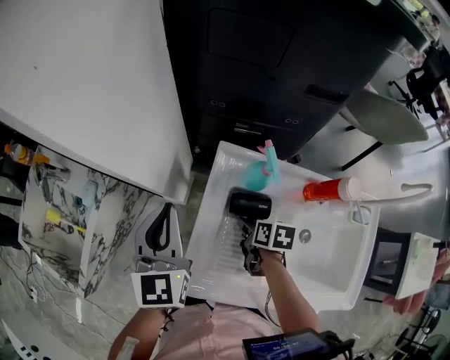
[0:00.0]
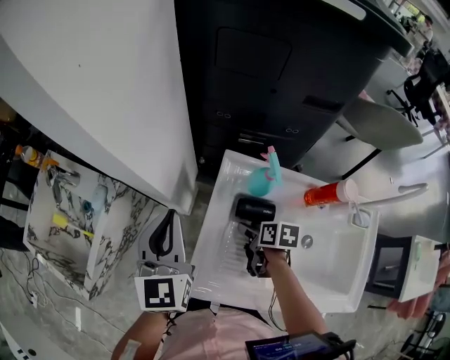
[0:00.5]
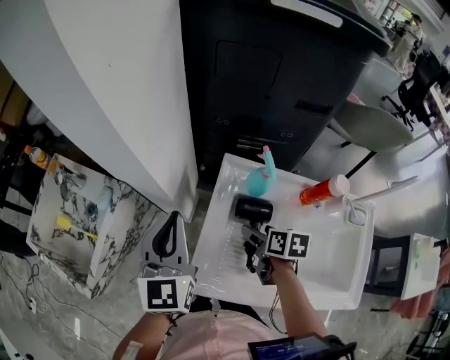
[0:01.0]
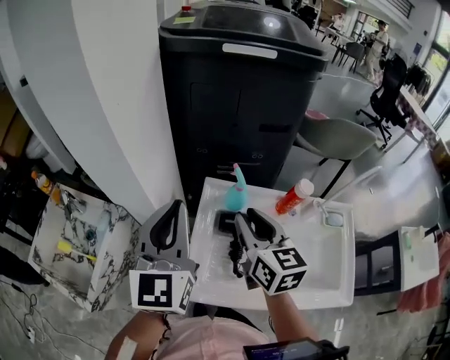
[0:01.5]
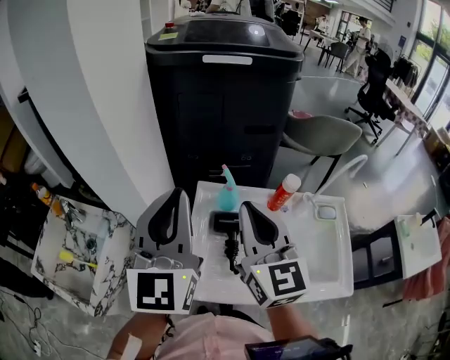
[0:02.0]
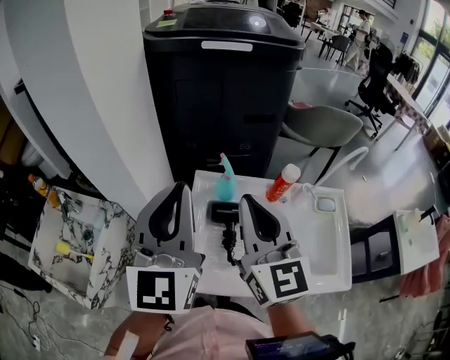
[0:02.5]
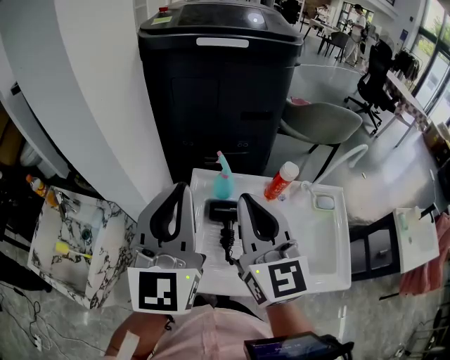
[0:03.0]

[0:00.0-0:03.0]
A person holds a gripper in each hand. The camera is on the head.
0:00.0 to 0:01.5: The right gripper travels upward by approximately 30 cm, tips its fingers upward by approximately 40 degrees, and opens and closes again, while the left gripper travels upward by about 20 cm.
0:01.5 to 0:03.0: The right gripper moves upward and backward, approximately 10 cm, and changes its angle by some 20 degrees, while the left gripper is displaced upward by some 5 cm.

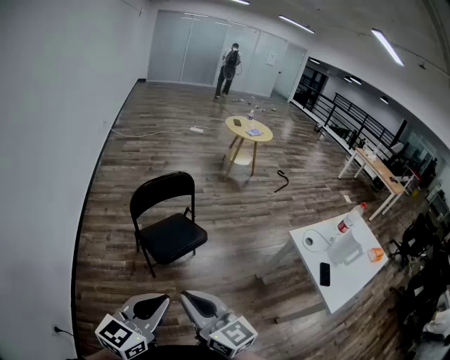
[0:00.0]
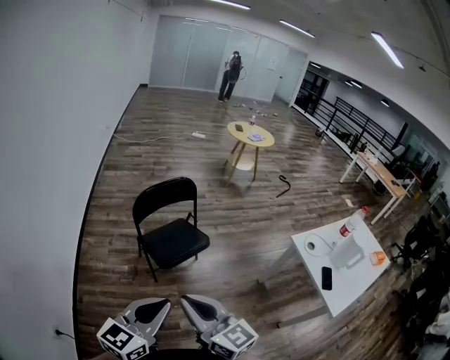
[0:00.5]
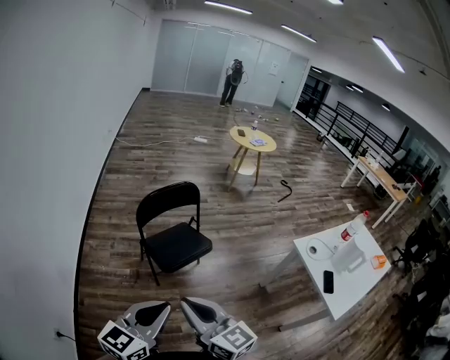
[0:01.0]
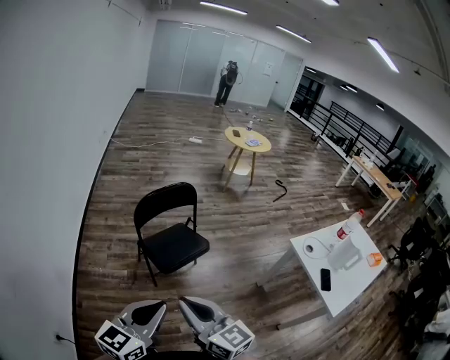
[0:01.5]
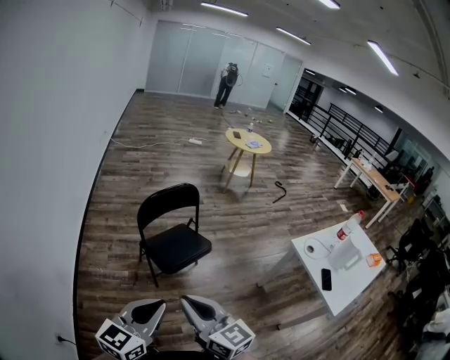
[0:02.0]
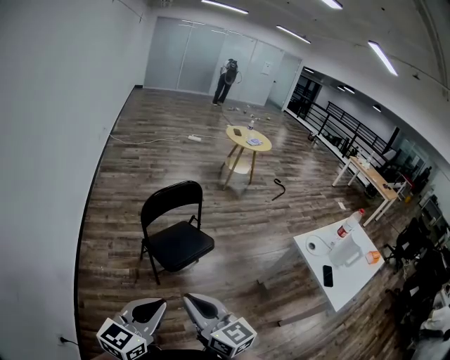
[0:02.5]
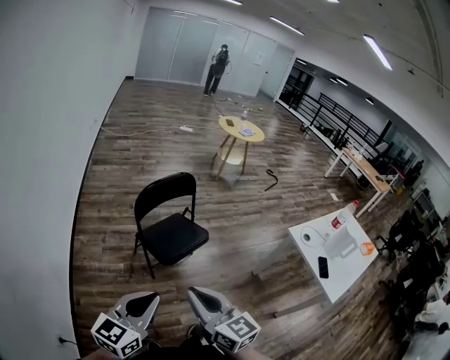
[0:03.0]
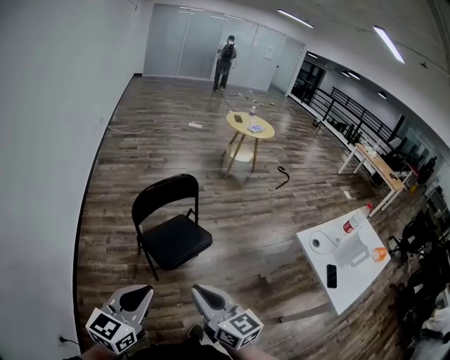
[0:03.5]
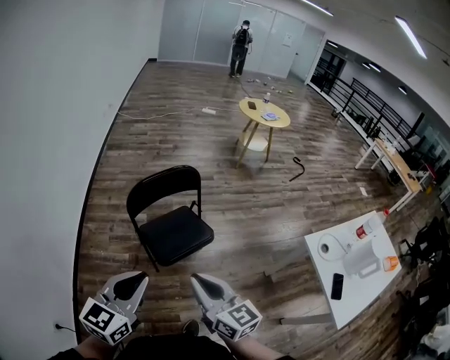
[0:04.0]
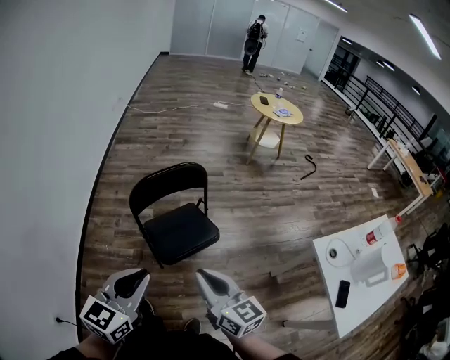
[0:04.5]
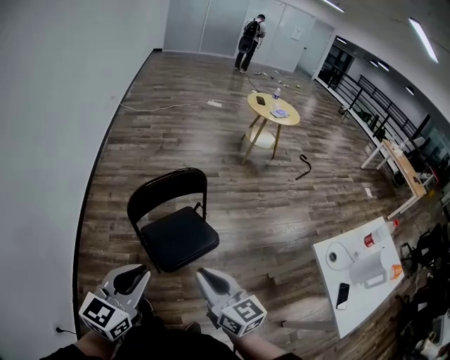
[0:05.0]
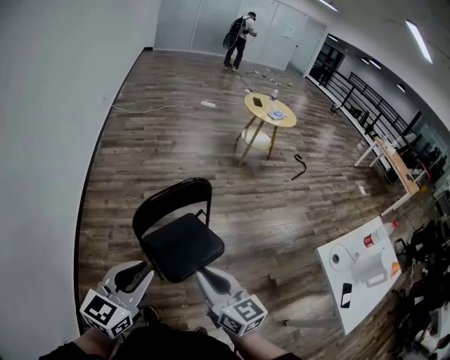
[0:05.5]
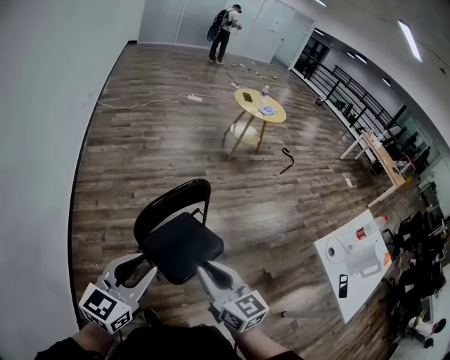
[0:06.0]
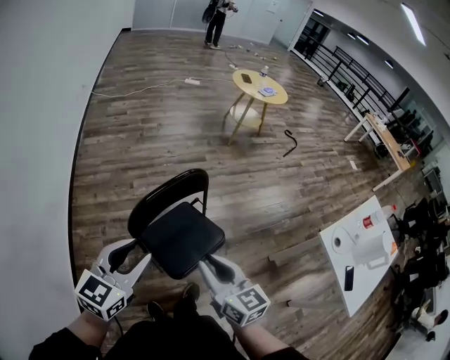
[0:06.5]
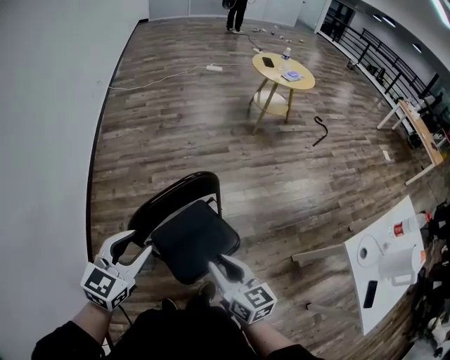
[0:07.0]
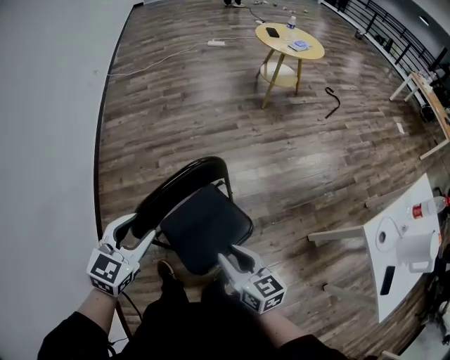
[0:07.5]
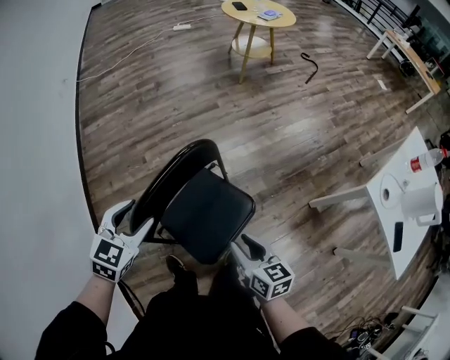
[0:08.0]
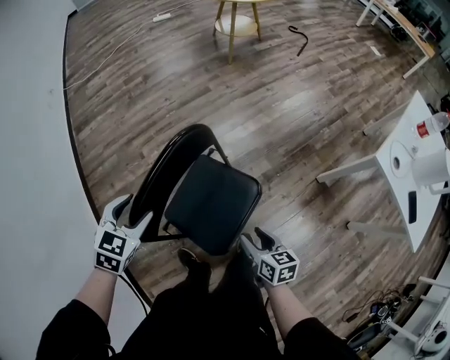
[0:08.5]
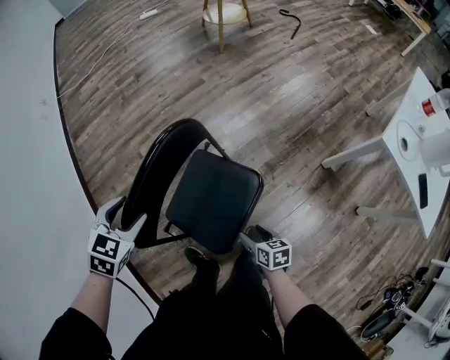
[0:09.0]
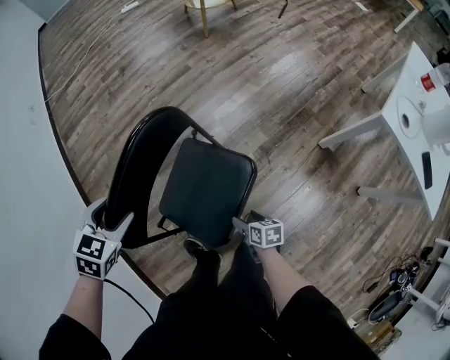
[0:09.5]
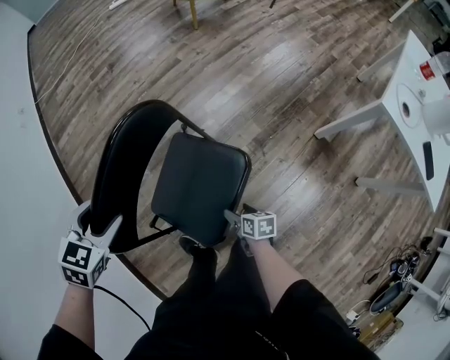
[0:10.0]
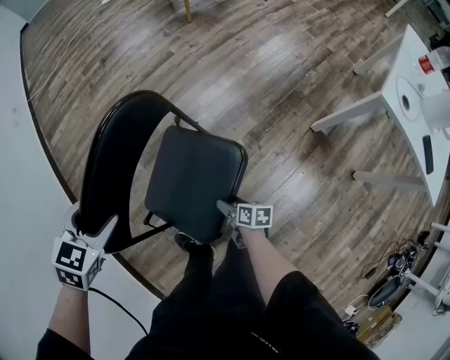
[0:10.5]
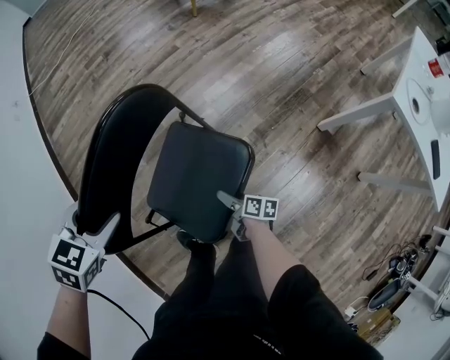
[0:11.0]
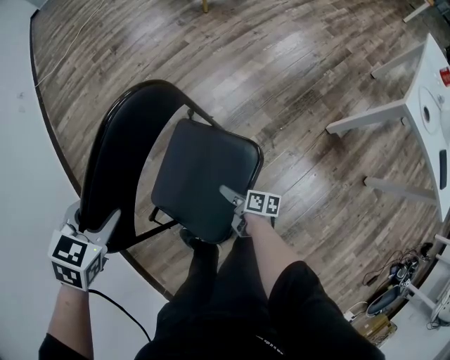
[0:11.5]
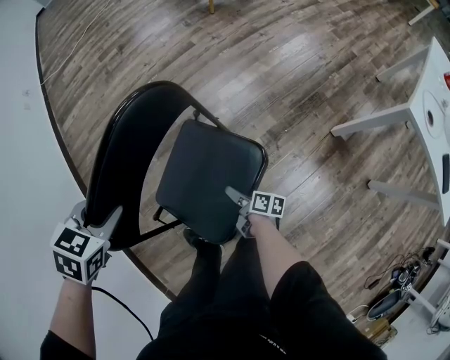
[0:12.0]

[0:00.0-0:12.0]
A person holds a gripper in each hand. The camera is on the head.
0:00.0 to 0:02.0: The left gripper is displaced to the left by some 5 cm.
0:02.0 to 0:04.0: The right gripper heads forward and to the right, covering approximately 15 cm. Meanwhile the left gripper moves forward, about 15 cm.
0:04.0 to 0:06.0: The grippers both shift forward and to the left by about 20 cm. The left gripper opens.
0:06.0 to 0:08.0: The left gripper is displaced forward and downward by some 30 cm, changes its angle by approximately 40 degrees, and opens up, while the right gripper heads downward, covering some 20 cm, and rotates about 30 degrees.
0:08.0 to 0:10.0: The right gripper travels downward by about 30 cm, swivels some 40 degrees, and opens up. Meanwhile the left gripper shifts roughly 10 cm downward, and rotates some 20 degrees.
0:10.0 to 0:12.0: The right gripper shifts about 5 cm forward, and swivels approximately 30 degrees; the left gripper closes its fingers.

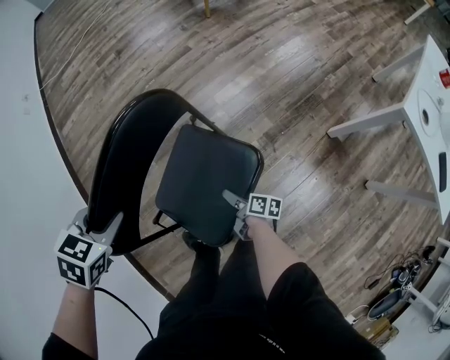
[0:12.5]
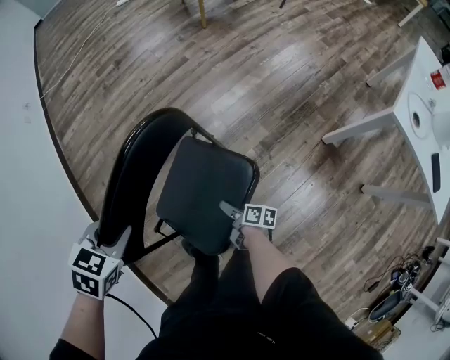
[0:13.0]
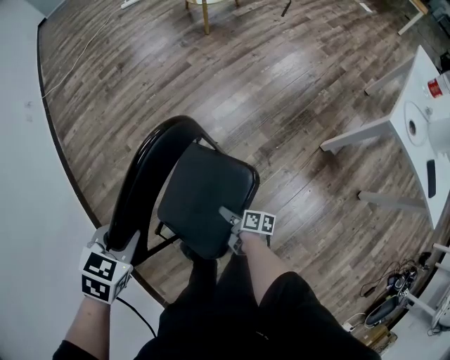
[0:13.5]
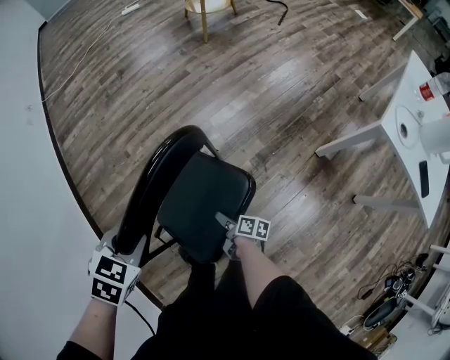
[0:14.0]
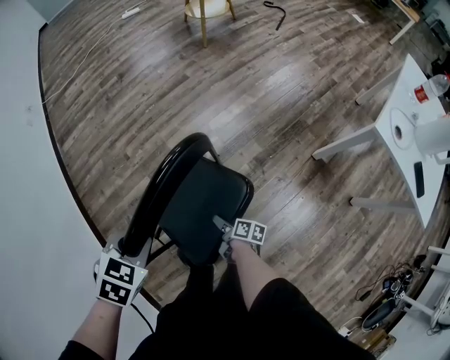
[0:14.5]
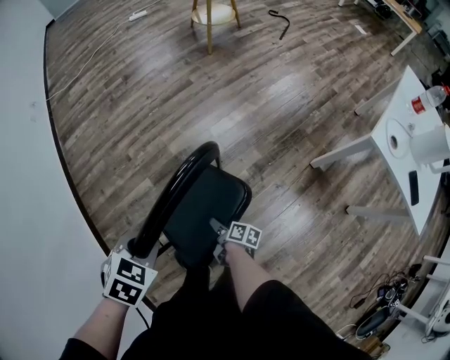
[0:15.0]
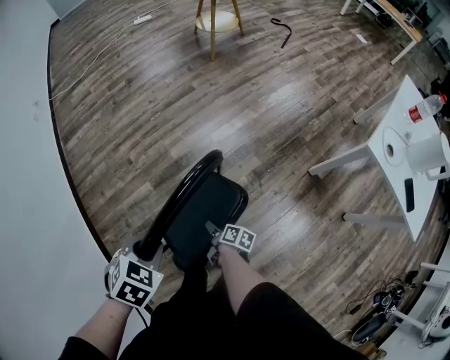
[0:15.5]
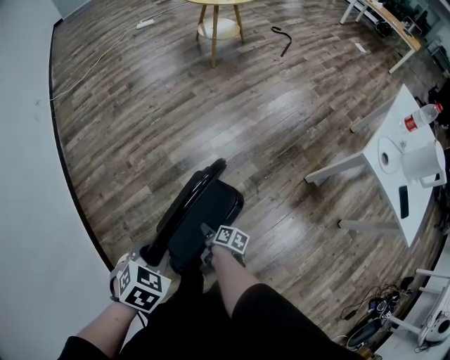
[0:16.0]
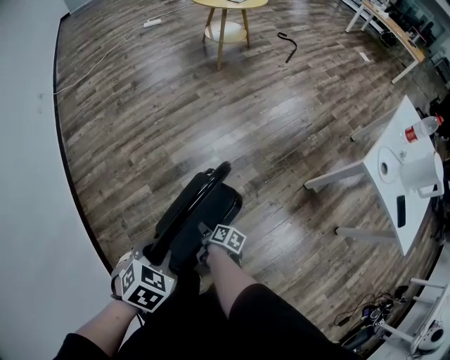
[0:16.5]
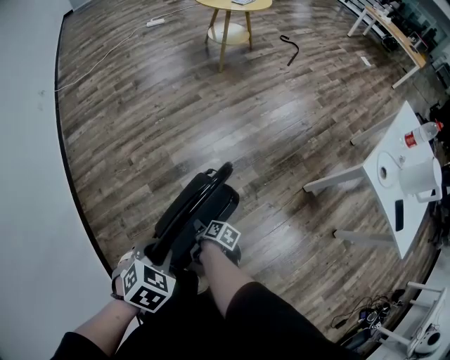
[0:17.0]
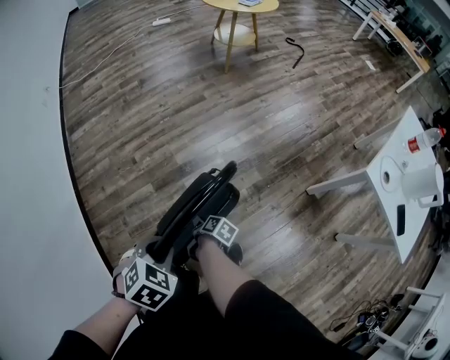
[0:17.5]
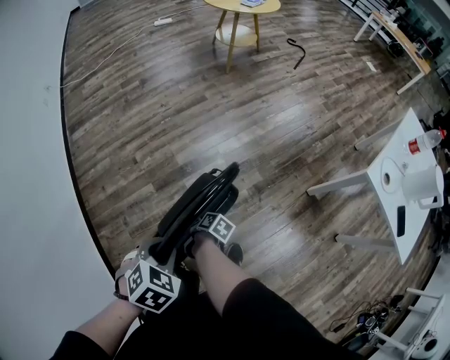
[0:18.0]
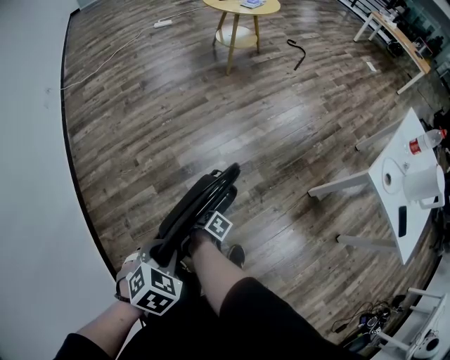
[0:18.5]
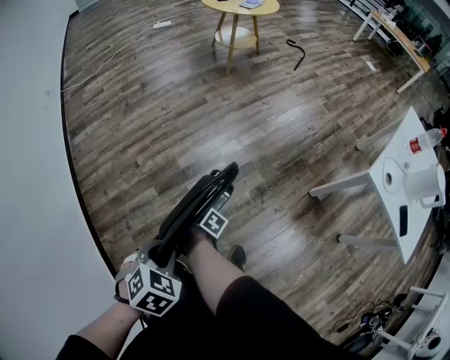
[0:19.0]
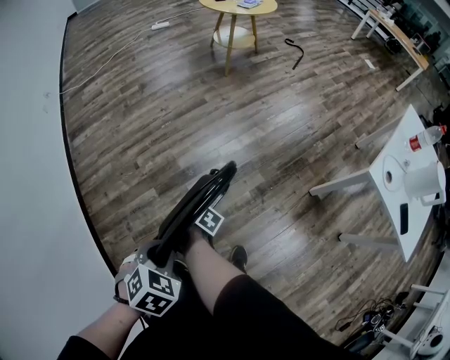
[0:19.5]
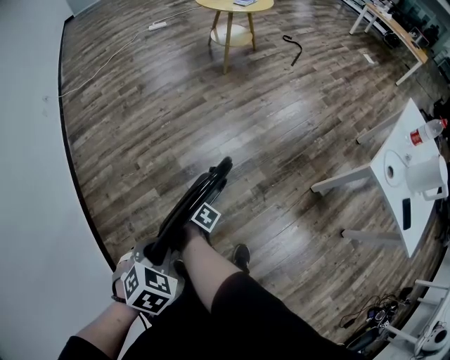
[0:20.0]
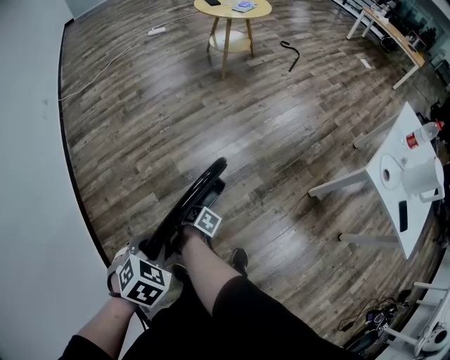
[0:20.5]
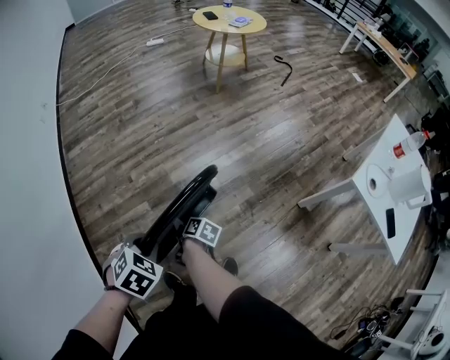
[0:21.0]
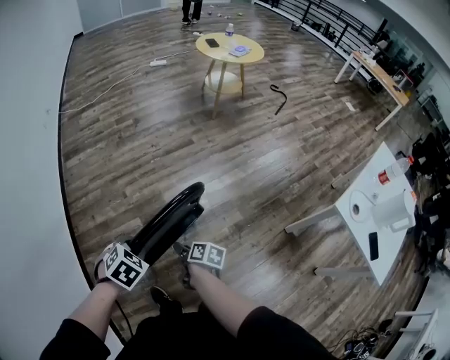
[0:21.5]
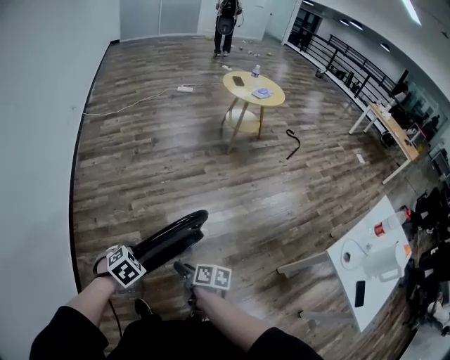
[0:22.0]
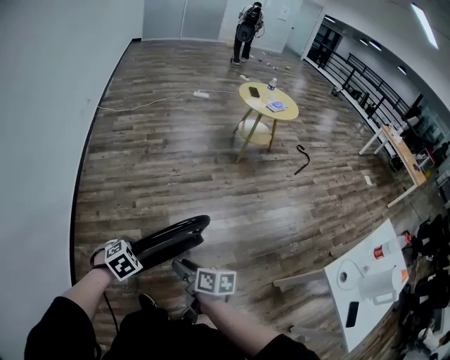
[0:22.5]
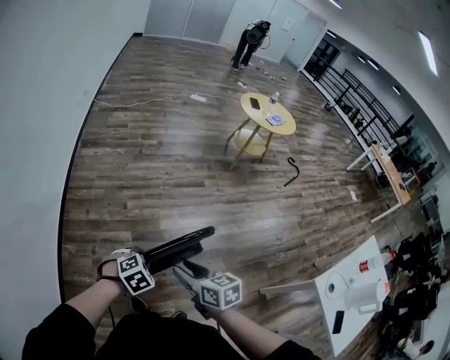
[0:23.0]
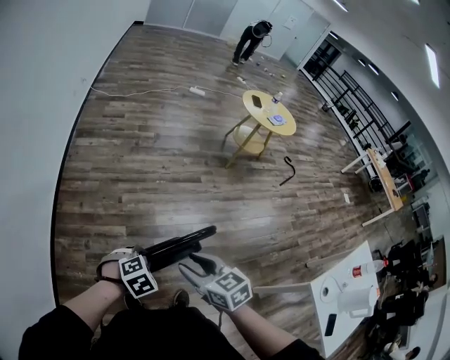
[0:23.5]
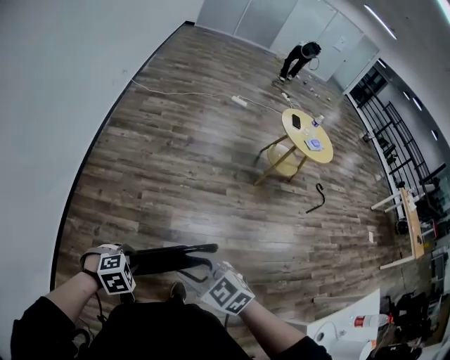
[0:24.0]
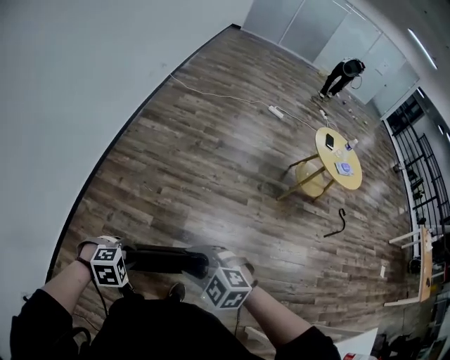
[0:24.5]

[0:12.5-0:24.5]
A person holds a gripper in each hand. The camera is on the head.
0:12.5 to 0:14.5: The right gripper changes place by some 5 cm. Meanwhile the left gripper goes about 5 cm backward.
0:14.5 to 0:16.5: The right gripper moves some 5 cm, while the left gripper moves roughly 5 cm.
0:16.5 to 0:18.5: The right gripper travels forward by about 5 cm.
0:18.5 to 0:20.5: The right gripper moves about 5 cm.
0:20.5 to 0:22.5: The right gripper goes roughly 20 cm upward, and rotates around the line of its fingers by roughly 50 degrees, counterclockwise from behind.
0:22.5 to 0:24.5: The right gripper moves some 15 cm, and twists about 100 degrees counterclockwise, seen from behind.
